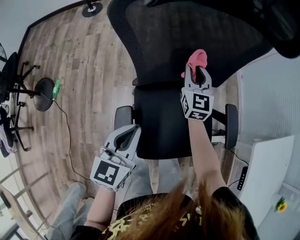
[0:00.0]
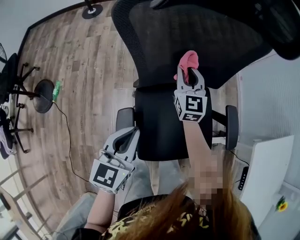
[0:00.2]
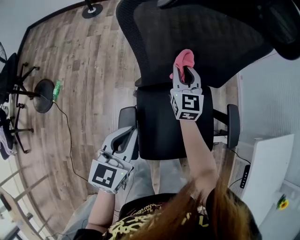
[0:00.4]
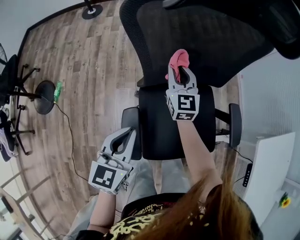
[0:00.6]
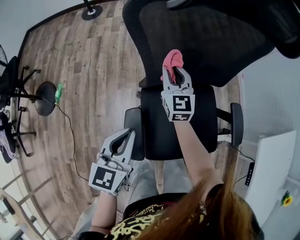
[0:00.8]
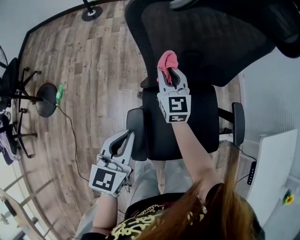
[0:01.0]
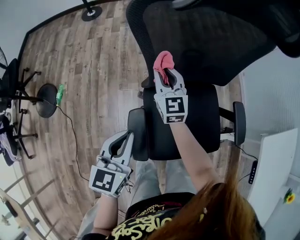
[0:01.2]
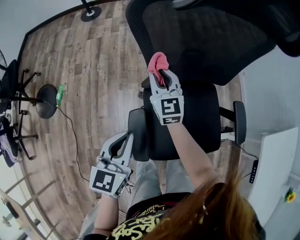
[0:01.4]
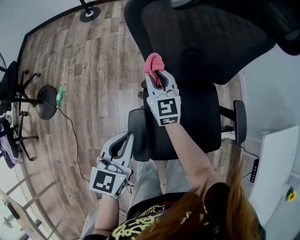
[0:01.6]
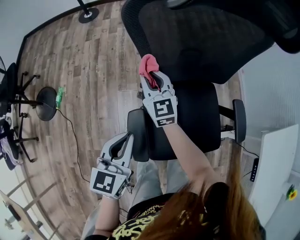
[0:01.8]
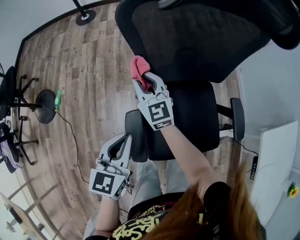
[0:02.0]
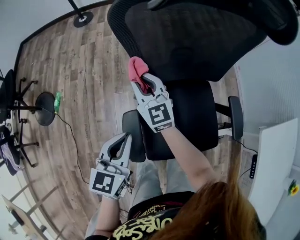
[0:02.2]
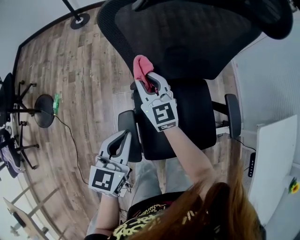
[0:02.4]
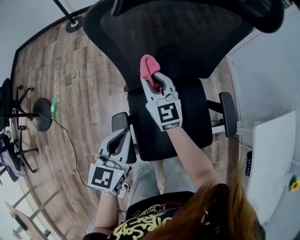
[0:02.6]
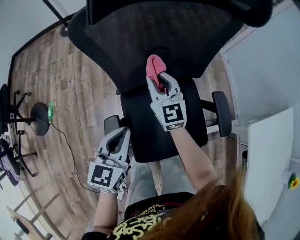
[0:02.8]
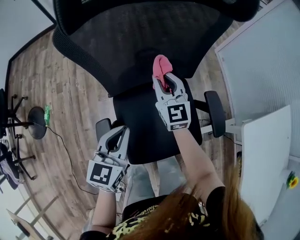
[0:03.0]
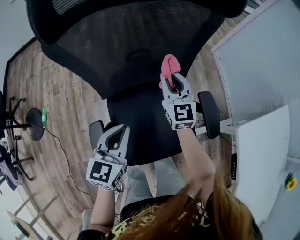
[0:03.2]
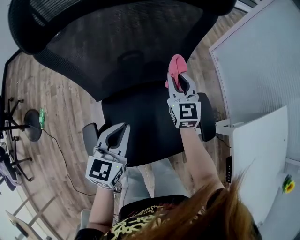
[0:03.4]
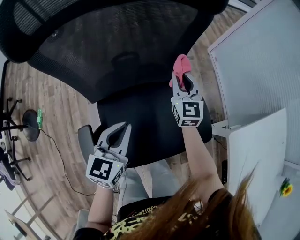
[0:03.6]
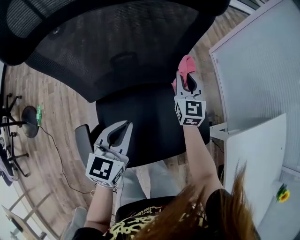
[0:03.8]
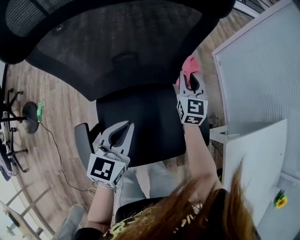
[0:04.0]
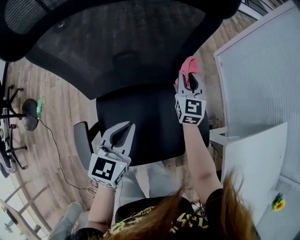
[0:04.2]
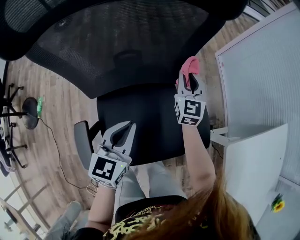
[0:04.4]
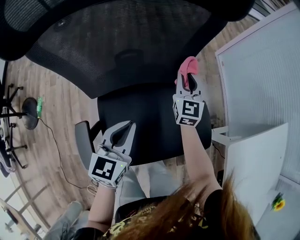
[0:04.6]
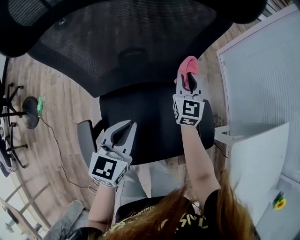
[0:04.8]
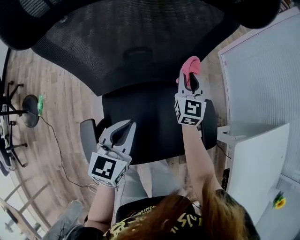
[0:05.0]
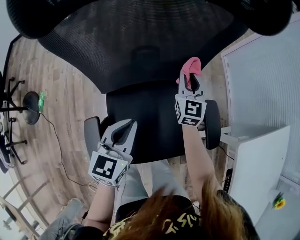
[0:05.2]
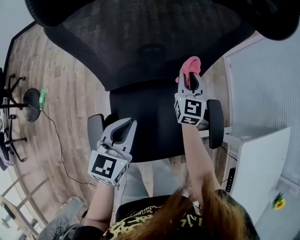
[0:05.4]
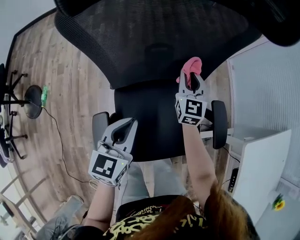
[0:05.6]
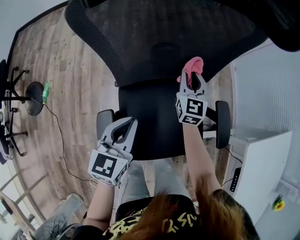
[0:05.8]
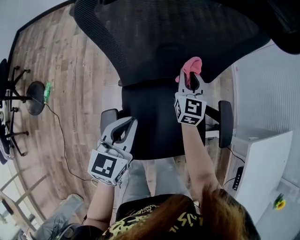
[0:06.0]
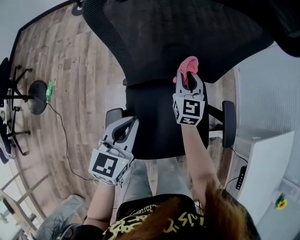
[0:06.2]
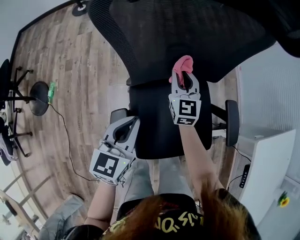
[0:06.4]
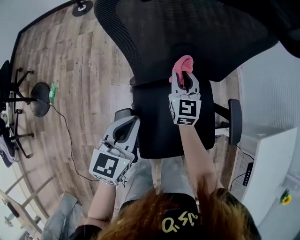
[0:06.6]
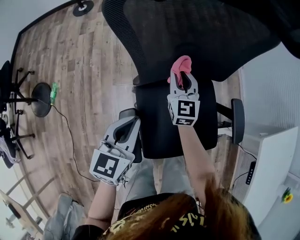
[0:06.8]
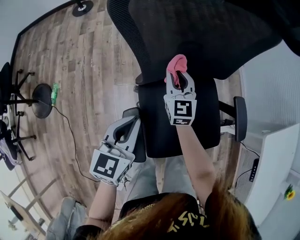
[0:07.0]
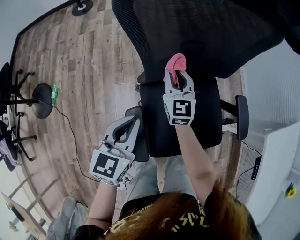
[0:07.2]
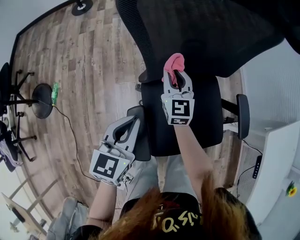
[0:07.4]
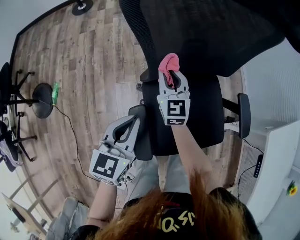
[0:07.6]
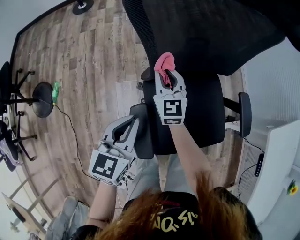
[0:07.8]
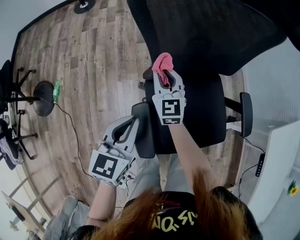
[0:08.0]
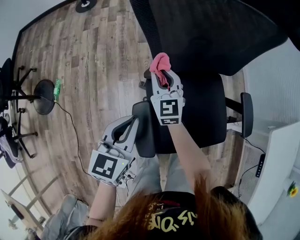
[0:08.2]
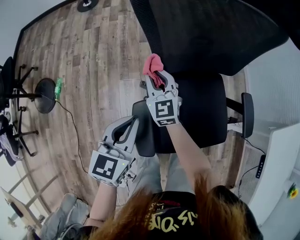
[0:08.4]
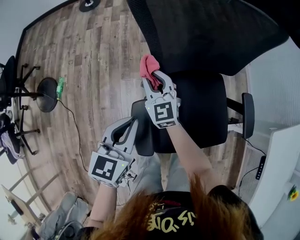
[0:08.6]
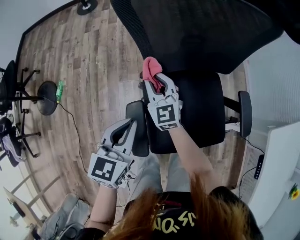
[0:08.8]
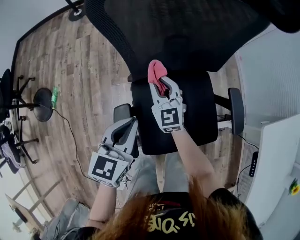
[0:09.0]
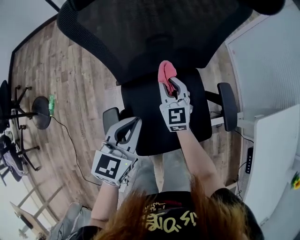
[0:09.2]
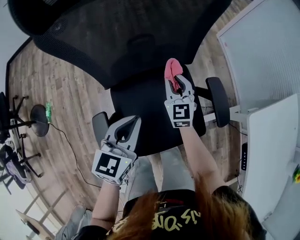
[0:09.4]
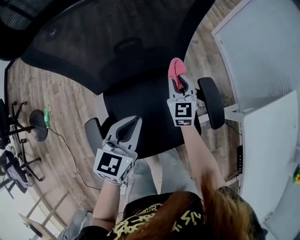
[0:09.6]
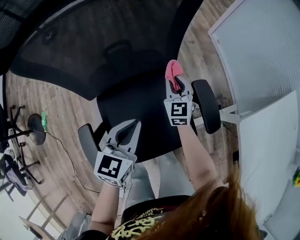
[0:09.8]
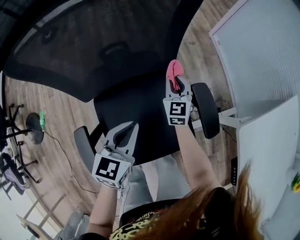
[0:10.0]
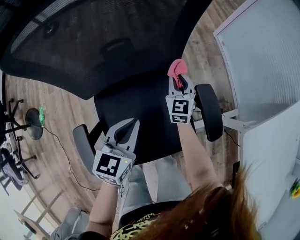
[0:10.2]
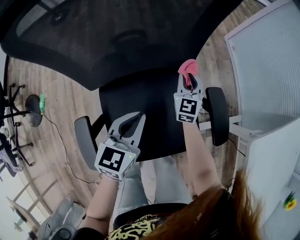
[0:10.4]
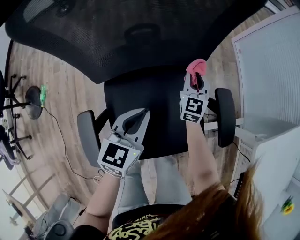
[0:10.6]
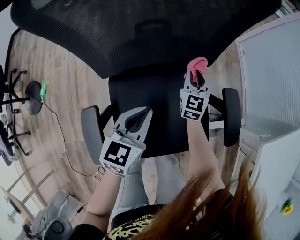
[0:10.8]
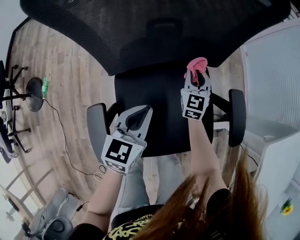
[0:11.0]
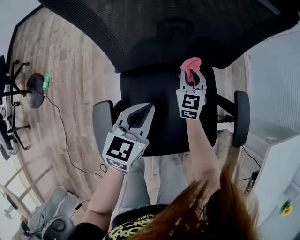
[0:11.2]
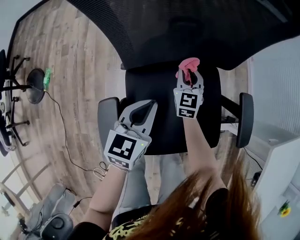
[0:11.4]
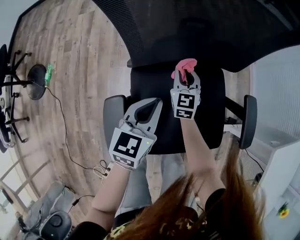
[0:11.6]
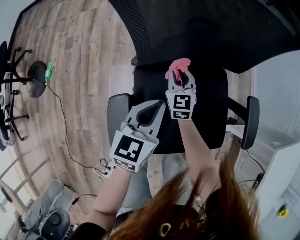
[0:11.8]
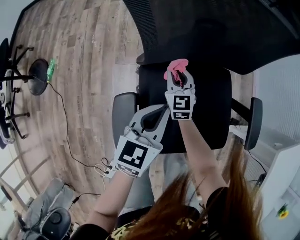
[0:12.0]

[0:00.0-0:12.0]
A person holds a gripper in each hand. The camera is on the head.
0:00.0 to 0:01.6: The left gripper heads to the left, covering about 10 cm. Meanwhile the right gripper goes some 20 cm to the left.
0:01.6 to 0:03.0: Both grippers move to the right, some 20 cm.
0:03.0 to 0:04.4: The right gripper is displaced to the right and forward by some 20 cm; the left gripper goes approximately 15 cm to the right and forward.
0:04.4 to 0:06.0: The grippers both shift to the left by roughly 15 cm.
0:06.0 to 0:07.6: The left gripper heads to the left, covering some 10 cm, while the right gripper goes about 20 cm to the left.
0:07.6 to 0:09.0: The right gripper moves some 5 cm to the left and comes back. The left gripper shifts roughly 5 cm to the right.
0:09.0 to 0:10.4: The right gripper moves to the right and forward, roughly 30 cm, and changes its angle by some 20 degrees. Meanwhile the left gripper goes some 20 cm to the right, forward and downward.
0:10.4 to 0:12.0: The right gripper moves to the left, roughly 25 cm, and rotates about 20 degrees. The left gripper moves to the left and backward, roughly 15 cm.

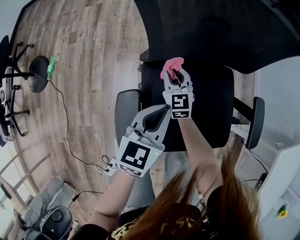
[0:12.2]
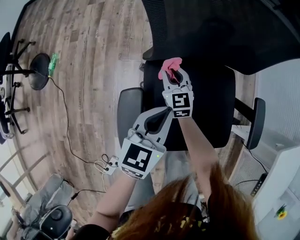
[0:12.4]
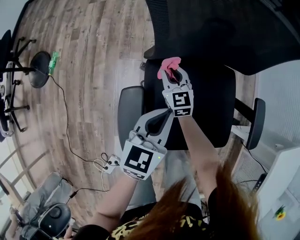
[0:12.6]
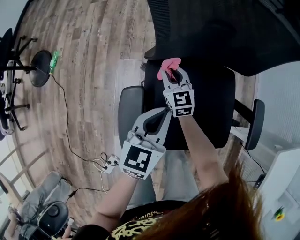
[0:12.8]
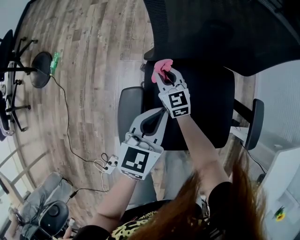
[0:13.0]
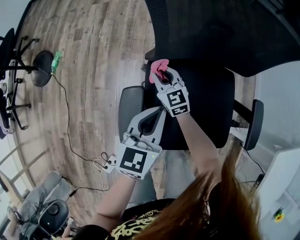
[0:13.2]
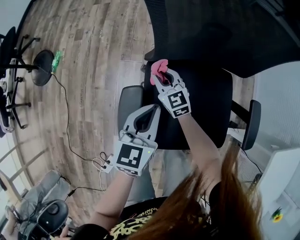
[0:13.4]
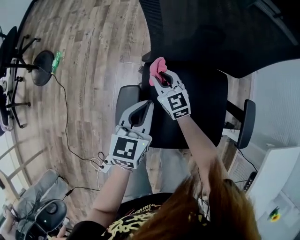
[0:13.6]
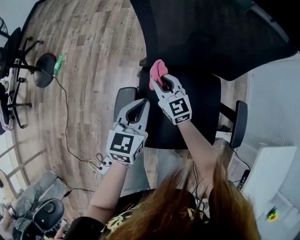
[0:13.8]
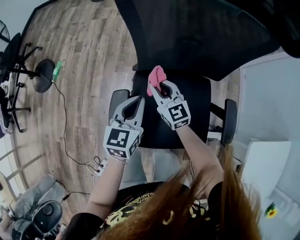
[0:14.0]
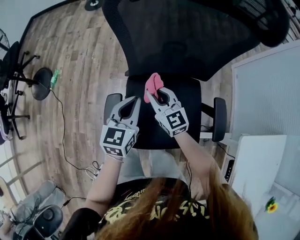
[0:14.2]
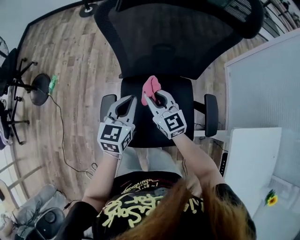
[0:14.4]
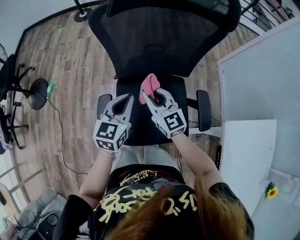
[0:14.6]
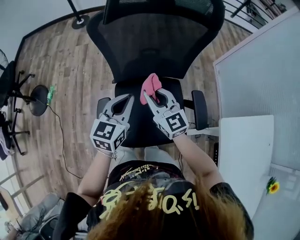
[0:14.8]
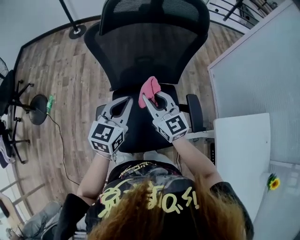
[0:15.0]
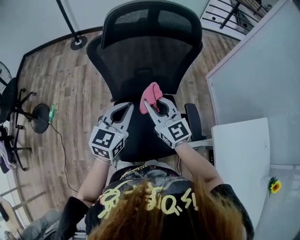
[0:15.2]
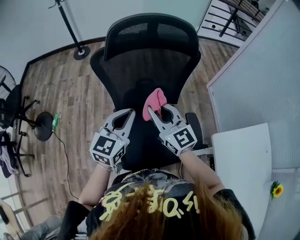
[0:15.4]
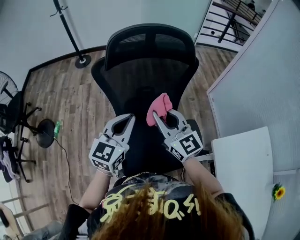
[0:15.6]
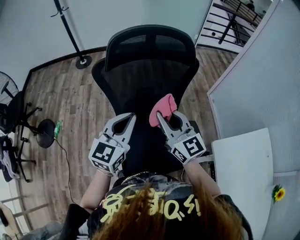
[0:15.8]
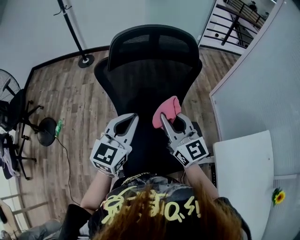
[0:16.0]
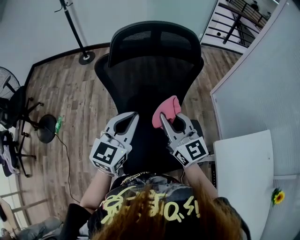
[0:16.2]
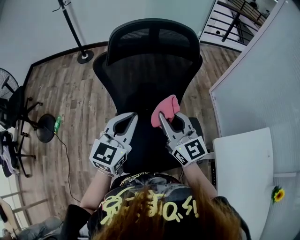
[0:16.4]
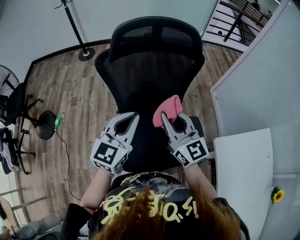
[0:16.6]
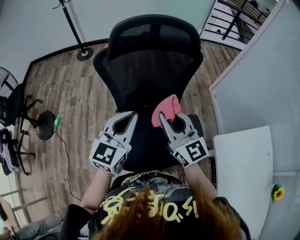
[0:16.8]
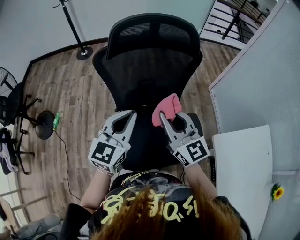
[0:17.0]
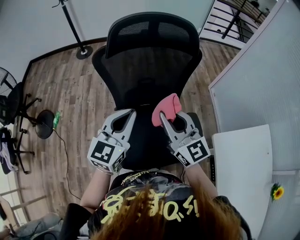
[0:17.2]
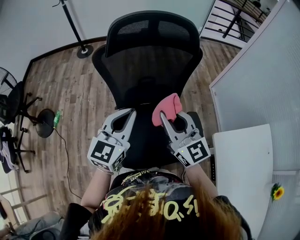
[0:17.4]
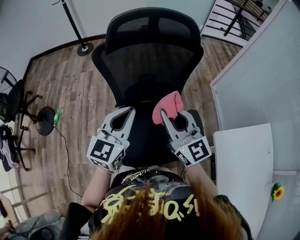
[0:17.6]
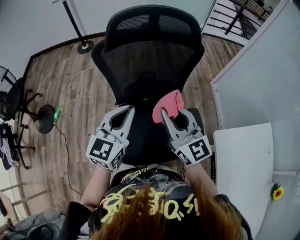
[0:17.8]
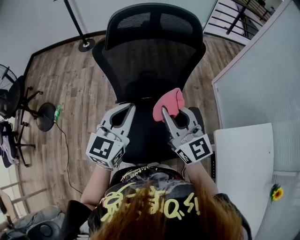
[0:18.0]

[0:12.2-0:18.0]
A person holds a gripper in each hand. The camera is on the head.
0:12.2 to 0:13.6: The right gripper heads to the left, covering roughly 5 cm, and rotates some 20 degrees. Meanwhile the left gripper ends up some 5 cm from where it was.
0:13.6 to 0:15.0: The two grippers go roughly 30 cm upward and to the right. The left gripper turns by about 20 degrees.
0:15.0 to 0:16.6: The right gripper heads upward and to the right, covering roughly 10 cm. Meanwhile the left gripper shifts roughly 10 cm upward.
0:16.6 to 0:18.0: There are only small adjustments of the grippers.

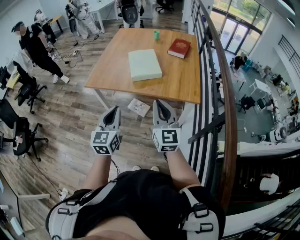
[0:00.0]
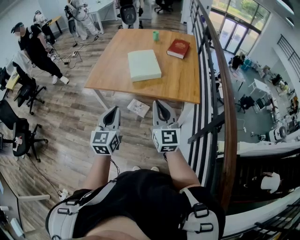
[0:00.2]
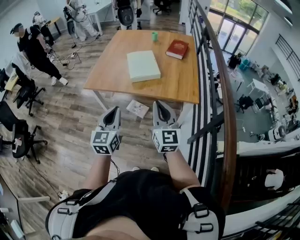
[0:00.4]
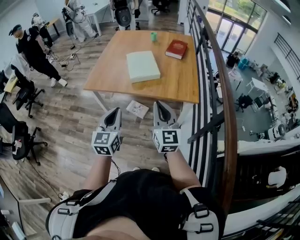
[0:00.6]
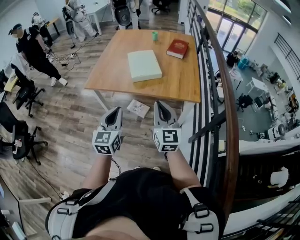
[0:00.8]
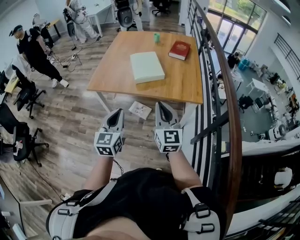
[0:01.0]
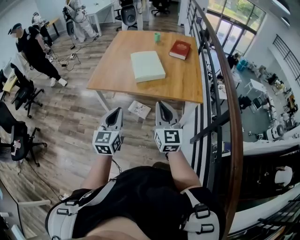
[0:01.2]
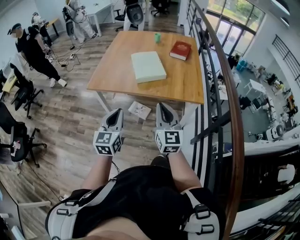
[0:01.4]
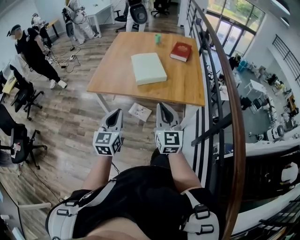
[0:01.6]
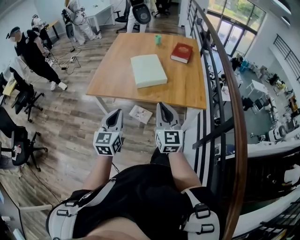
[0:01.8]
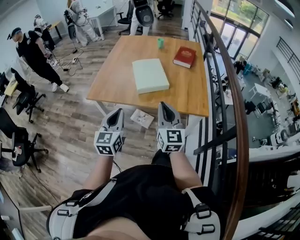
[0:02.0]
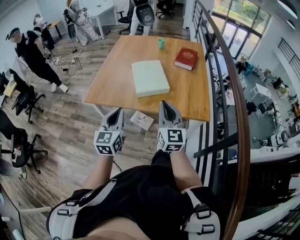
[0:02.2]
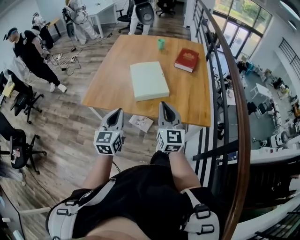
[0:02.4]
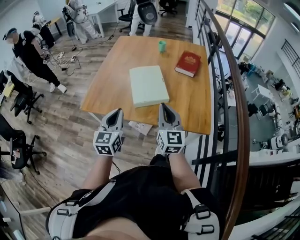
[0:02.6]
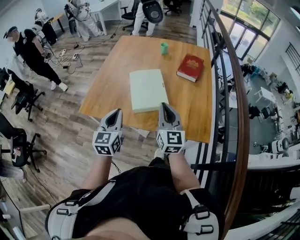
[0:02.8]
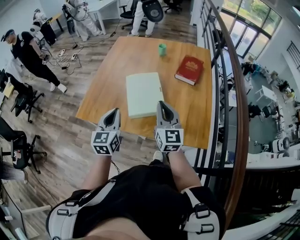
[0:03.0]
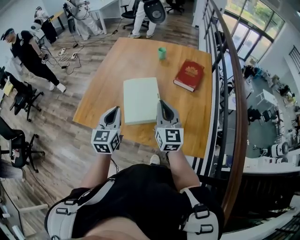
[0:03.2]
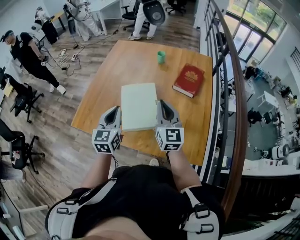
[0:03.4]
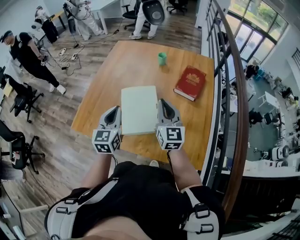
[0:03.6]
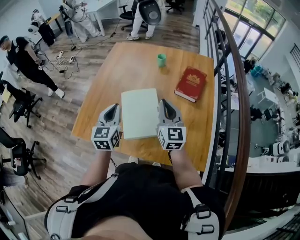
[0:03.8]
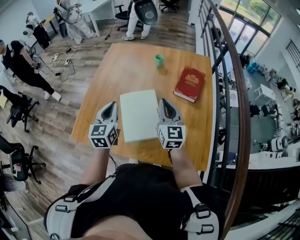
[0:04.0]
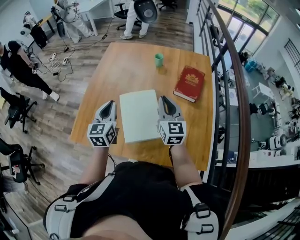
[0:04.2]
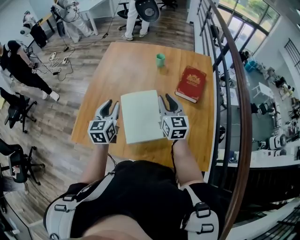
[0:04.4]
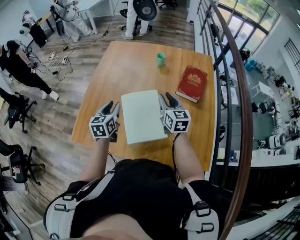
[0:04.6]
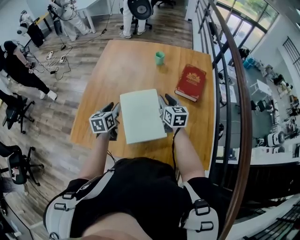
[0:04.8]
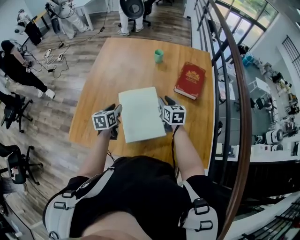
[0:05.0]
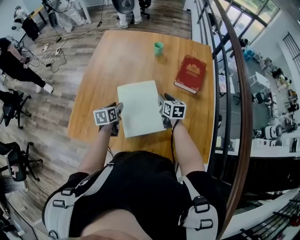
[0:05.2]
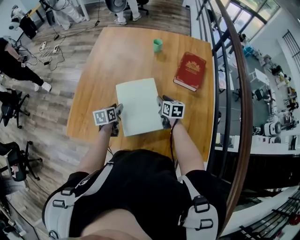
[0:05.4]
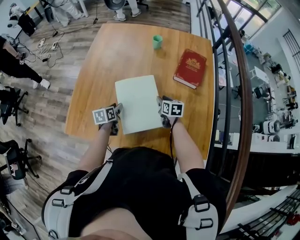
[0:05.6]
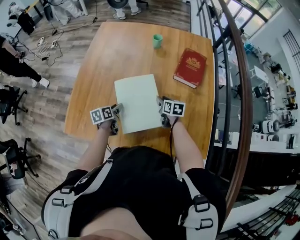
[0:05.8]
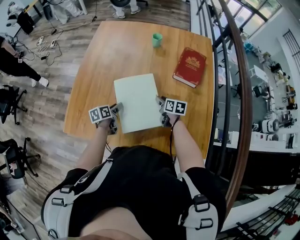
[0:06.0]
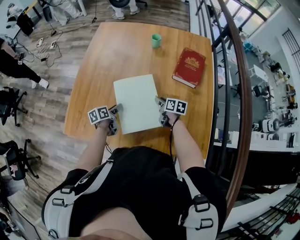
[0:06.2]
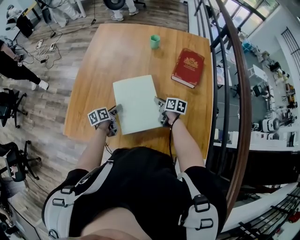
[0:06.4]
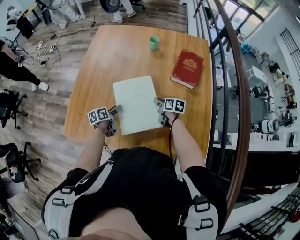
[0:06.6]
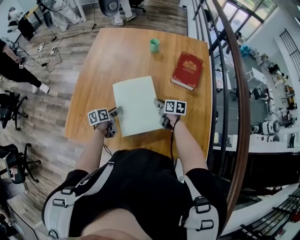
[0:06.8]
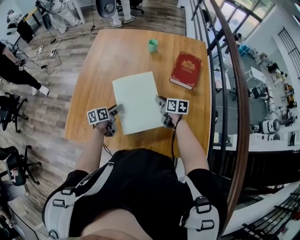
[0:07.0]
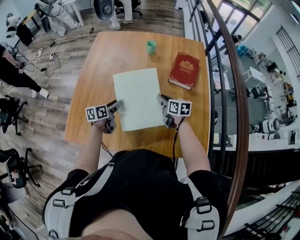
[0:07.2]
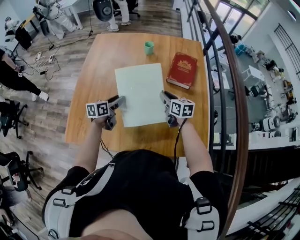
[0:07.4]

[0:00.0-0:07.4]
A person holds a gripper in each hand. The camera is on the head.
0:00.0 to 0:01.4: The right gripper ends up roughly 5 cm from where it was. The left gripper moves some 5 cm.
0:01.4 to 0:03.0: The grippers both shift forward by roughly 30 cm.
0:03.0 to 0:04.4: Both grippers move forward, roughly 20 cm. The right gripper opens. The left gripper opens up.
0:04.4 to 0:06.0: The two grippers go some 25 cm downward. The right gripper points its fingers about 30 degrees further downward; the left gripper rolls counterclockwise, seen from behind, by about 40 degrees.
0:06.0 to 0:07.4: The grippers both shift upward by approximately 10 cm. The left gripper swivels about 30 degrees.
